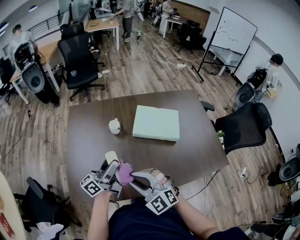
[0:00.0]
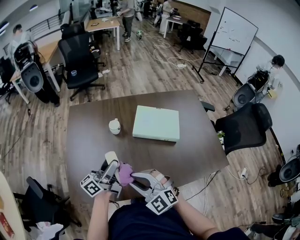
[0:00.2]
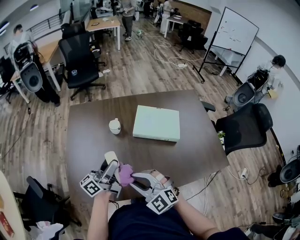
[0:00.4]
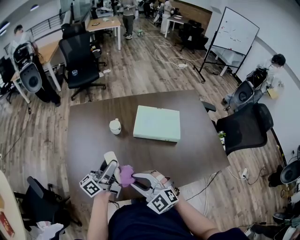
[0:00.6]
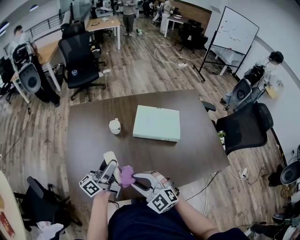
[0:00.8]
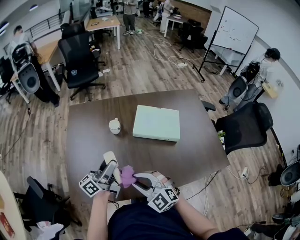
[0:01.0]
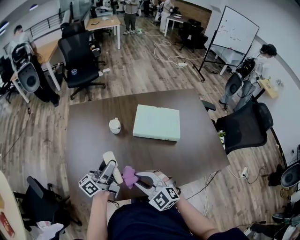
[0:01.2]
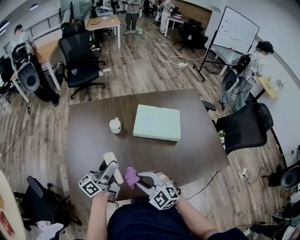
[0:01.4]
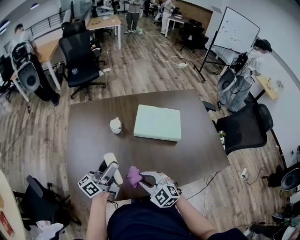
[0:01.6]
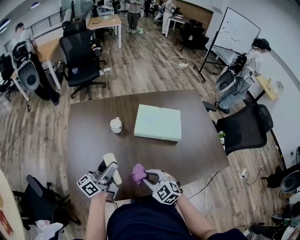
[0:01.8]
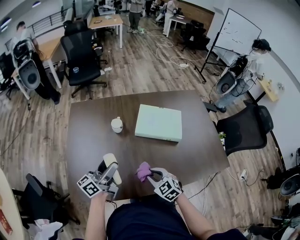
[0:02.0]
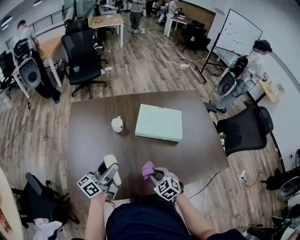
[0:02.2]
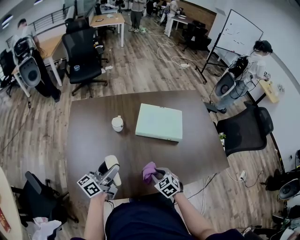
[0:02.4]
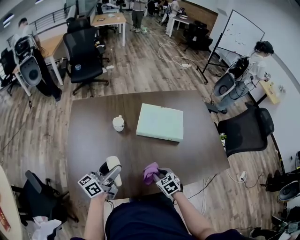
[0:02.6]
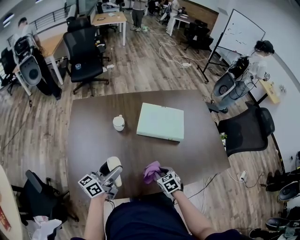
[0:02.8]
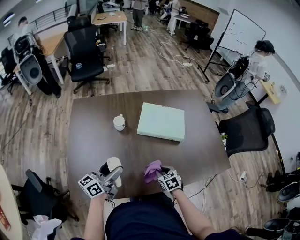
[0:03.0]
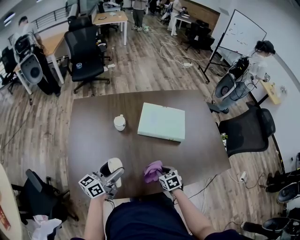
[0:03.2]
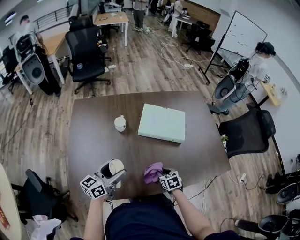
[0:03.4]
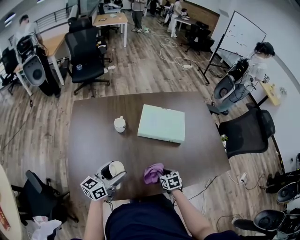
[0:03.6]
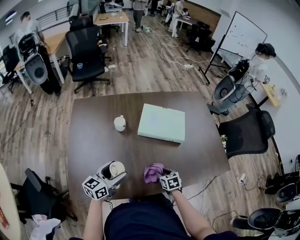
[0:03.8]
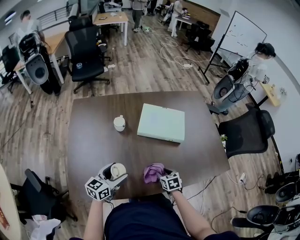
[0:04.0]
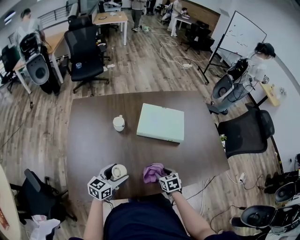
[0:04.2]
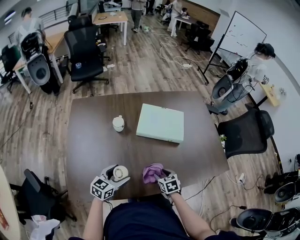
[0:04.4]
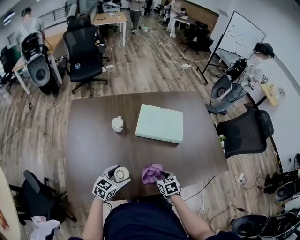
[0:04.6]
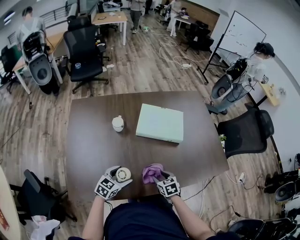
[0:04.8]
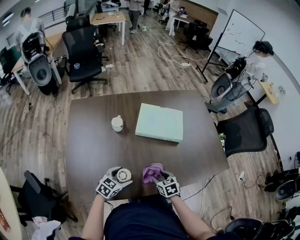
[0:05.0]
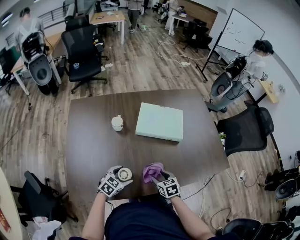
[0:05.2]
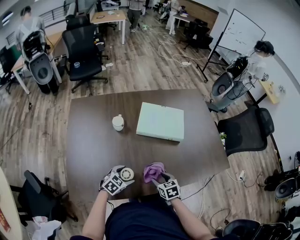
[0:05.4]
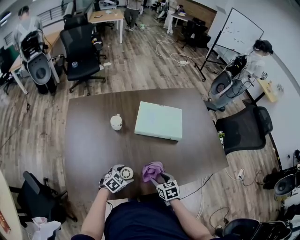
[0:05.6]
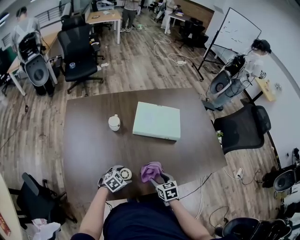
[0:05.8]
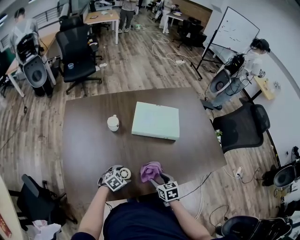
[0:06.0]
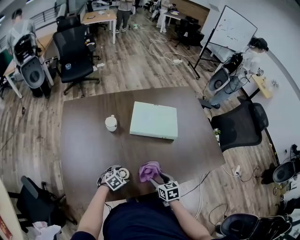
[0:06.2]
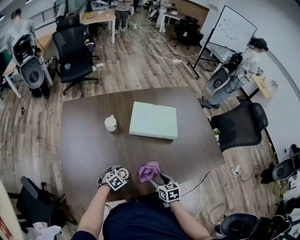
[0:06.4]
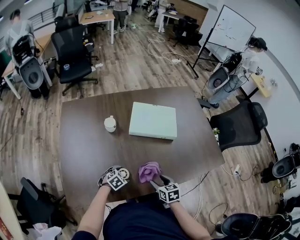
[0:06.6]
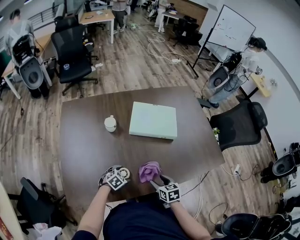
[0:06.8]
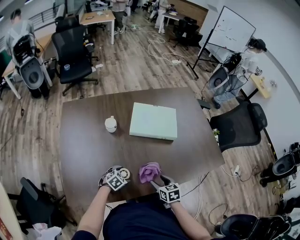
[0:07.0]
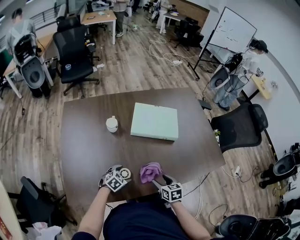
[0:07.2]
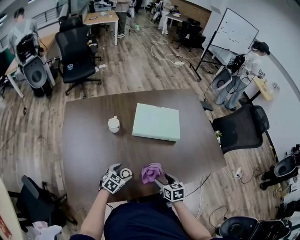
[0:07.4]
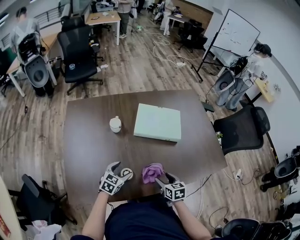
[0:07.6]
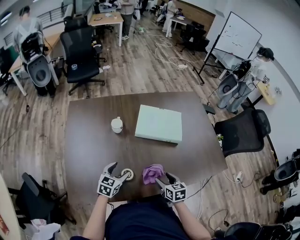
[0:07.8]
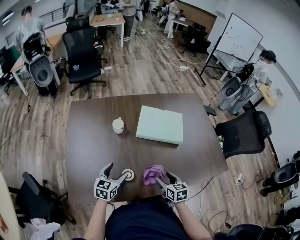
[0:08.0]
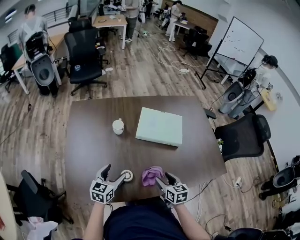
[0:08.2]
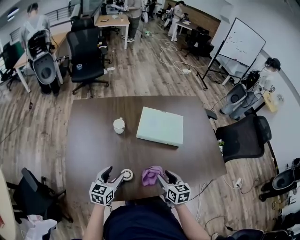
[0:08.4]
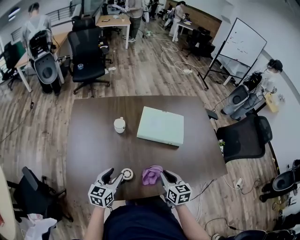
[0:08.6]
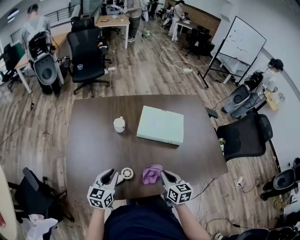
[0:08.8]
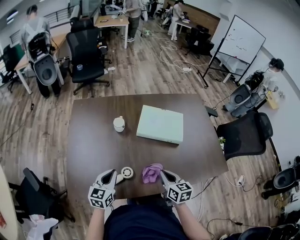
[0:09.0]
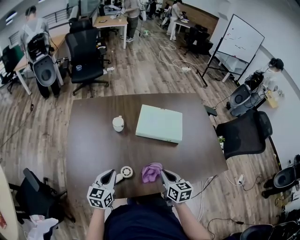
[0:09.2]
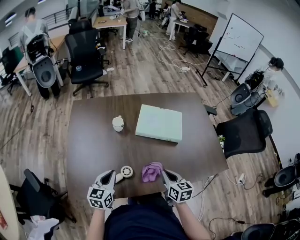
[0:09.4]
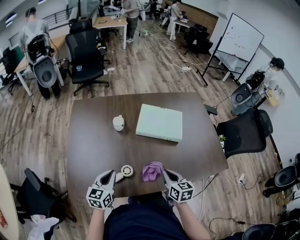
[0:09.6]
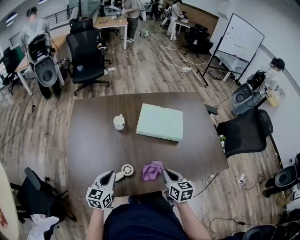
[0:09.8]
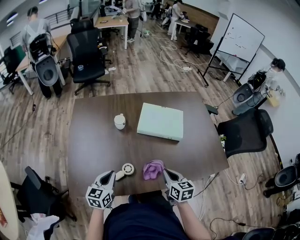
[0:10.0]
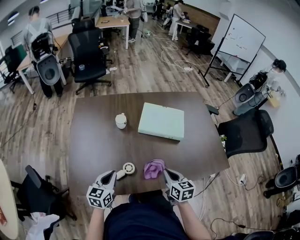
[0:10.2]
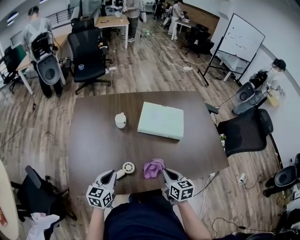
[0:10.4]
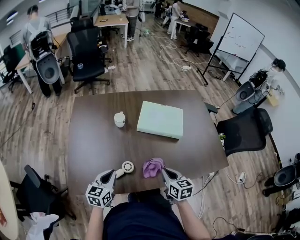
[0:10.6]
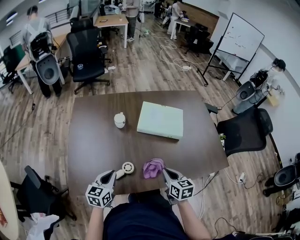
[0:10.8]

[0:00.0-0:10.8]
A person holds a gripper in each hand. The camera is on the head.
0:00.0 to 0:01.6: The right gripper heads downward, covering approximately 10 cm.
0:01.6 to 0:03.0: The right gripper moves downward and to the right, some 20 cm, and changes its angle by about 50 degrees; the left gripper moves some 5 cm.
0:03.0 to 0:04.6: The right gripper opens. The left gripper moves downward, roughly 10 cm, and tips its fingers downward by some 30 degrees.
0:04.6 to 0:06.2: The left gripper moves downward, approximately 15 cm, and tilts its fingers about 30 degrees downward.
0:06.2 to 0:07.8: The left gripper moves upward, about 15 cm, and turns by some 40 degrees.
0:07.8 to 0:09.2: The left gripper is displaced upward and backward by about 10 cm, and closes; the right gripper is displaced upward by approximately 10 cm, and closes up.
0:09.2 to 0:10.8: The grippers stay close to where they were, moving slightly.

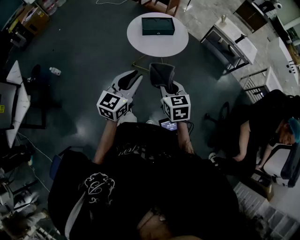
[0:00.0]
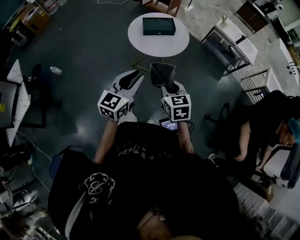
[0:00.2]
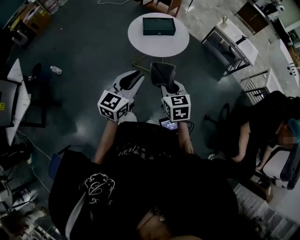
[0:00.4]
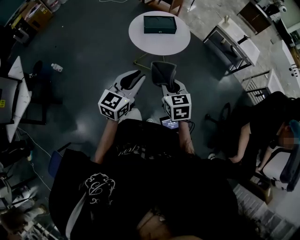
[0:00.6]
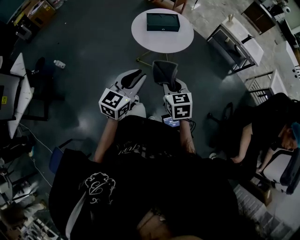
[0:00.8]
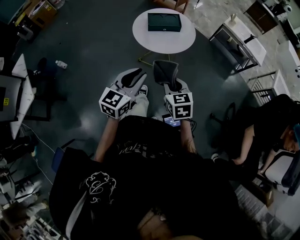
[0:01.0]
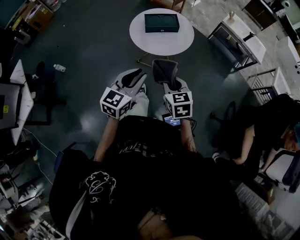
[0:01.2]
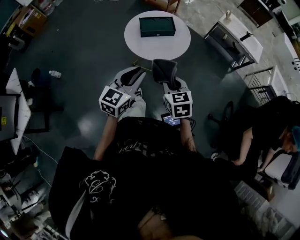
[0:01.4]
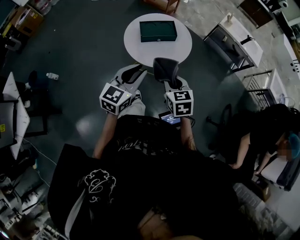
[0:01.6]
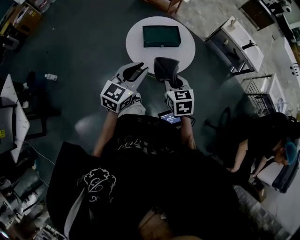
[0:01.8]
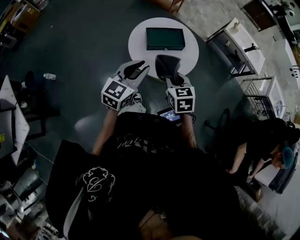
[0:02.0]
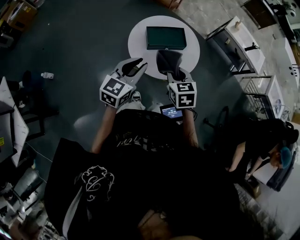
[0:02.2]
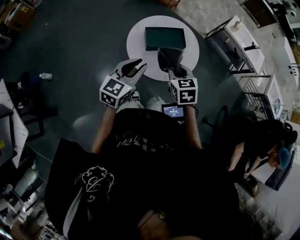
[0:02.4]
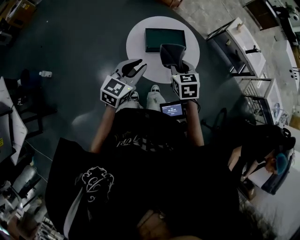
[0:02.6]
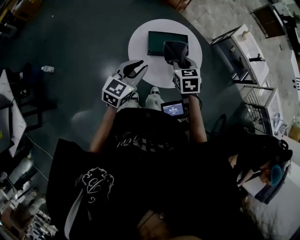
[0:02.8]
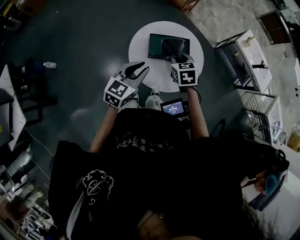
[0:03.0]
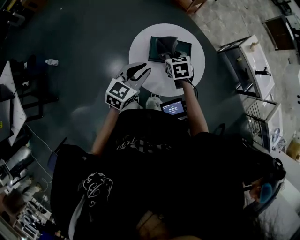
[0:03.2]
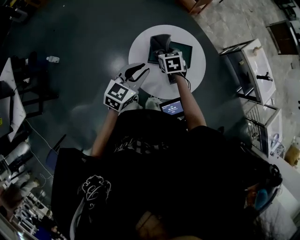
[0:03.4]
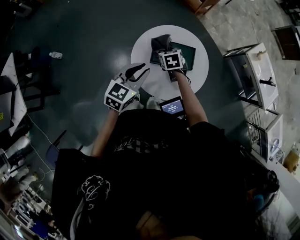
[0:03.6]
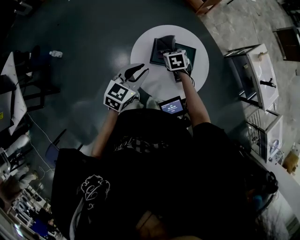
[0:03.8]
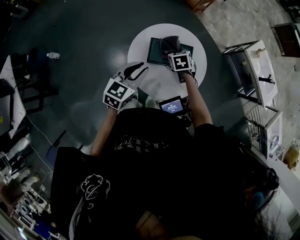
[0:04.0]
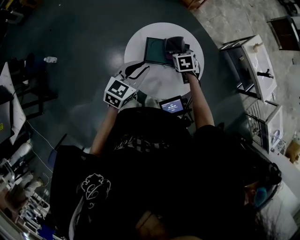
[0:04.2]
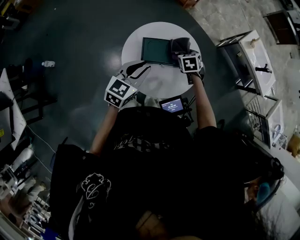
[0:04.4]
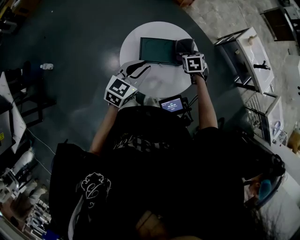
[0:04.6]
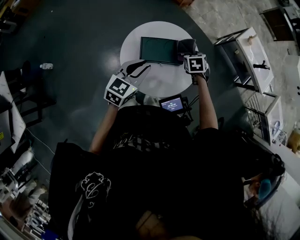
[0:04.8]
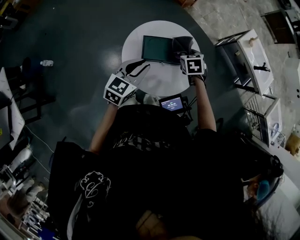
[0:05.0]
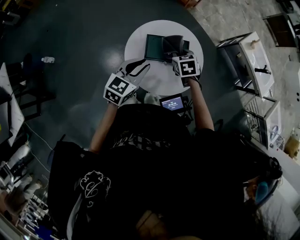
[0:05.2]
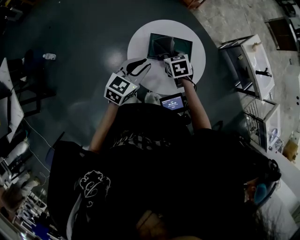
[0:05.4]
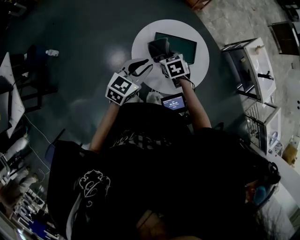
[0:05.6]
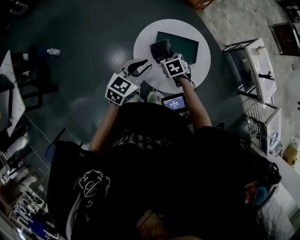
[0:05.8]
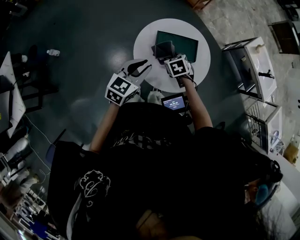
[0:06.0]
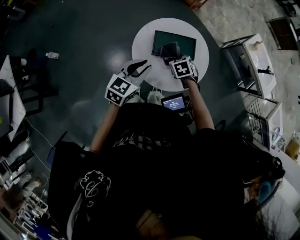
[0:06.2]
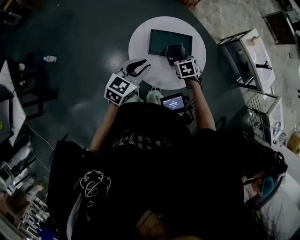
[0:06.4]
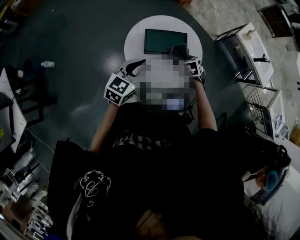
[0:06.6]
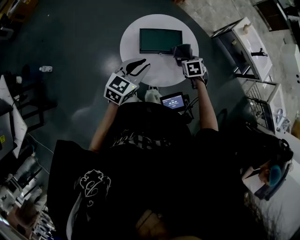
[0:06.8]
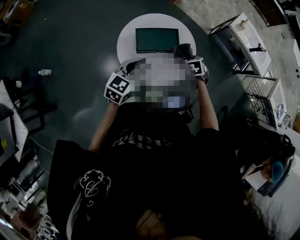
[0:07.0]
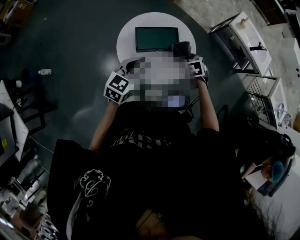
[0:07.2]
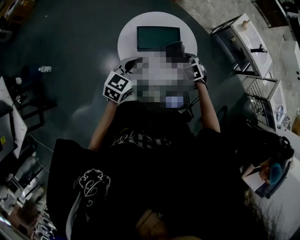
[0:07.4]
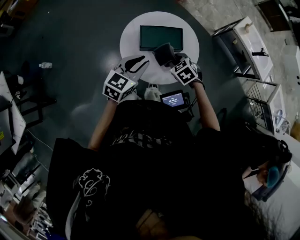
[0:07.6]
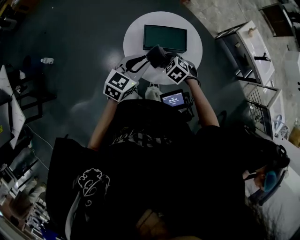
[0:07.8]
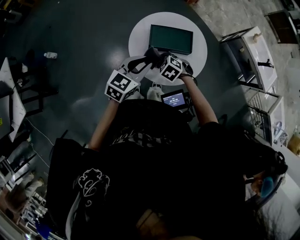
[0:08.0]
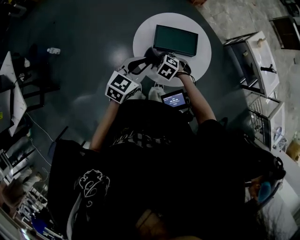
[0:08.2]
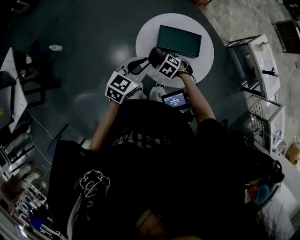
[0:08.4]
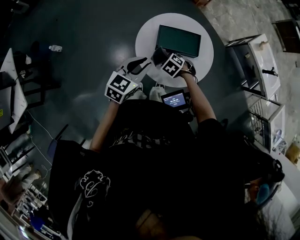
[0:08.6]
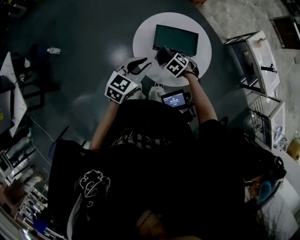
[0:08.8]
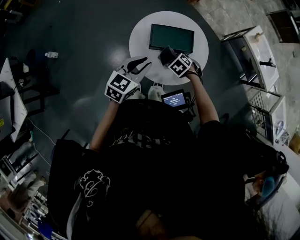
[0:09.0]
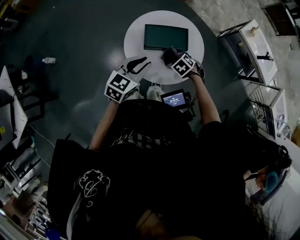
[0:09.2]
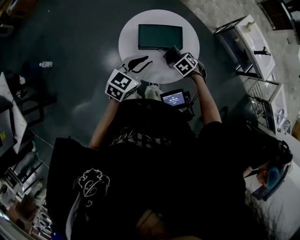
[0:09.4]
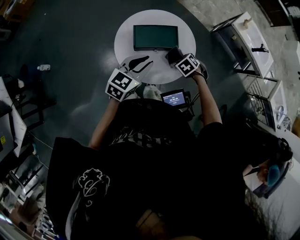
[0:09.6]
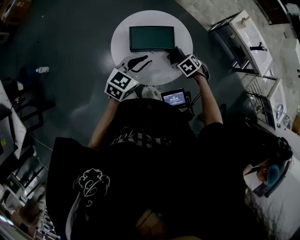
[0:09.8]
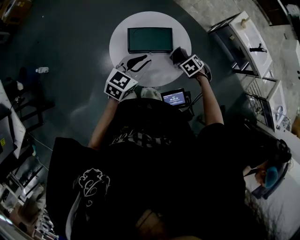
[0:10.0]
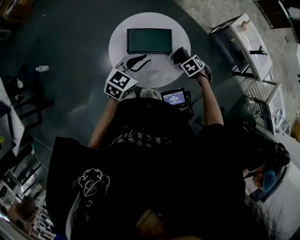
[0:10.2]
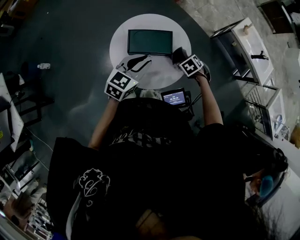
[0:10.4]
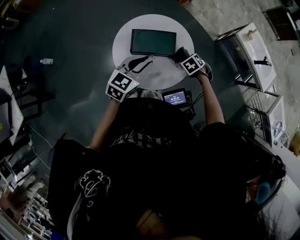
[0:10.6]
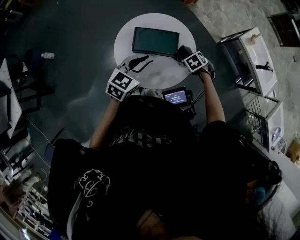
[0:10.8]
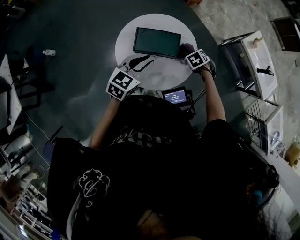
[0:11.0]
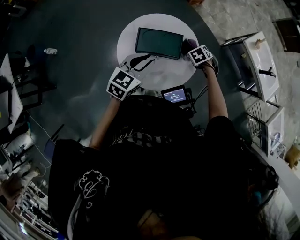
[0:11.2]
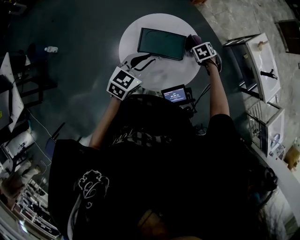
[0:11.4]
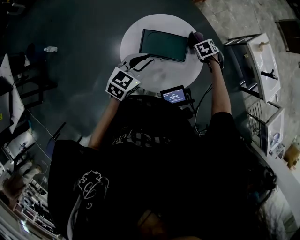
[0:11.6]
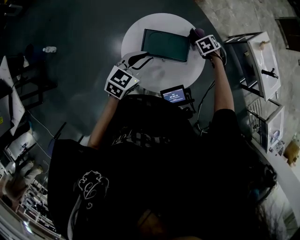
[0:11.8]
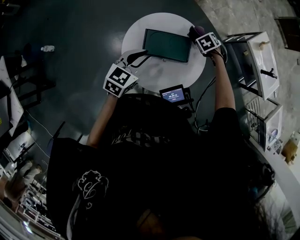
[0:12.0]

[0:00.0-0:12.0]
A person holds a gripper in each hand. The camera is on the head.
0:00.0 to 0:01.6: Both grippers travel together forward, roughly 15 cm.
0:01.6 to 0:03.0: The right gripper shifts about 30 cm forward; the left gripper heads forward, covering some 20 cm.
0:03.0 to 0:04.4: The left gripper moves forward, approximately 5 cm; the right gripper is displaced forward, downward and to the right by some 15 cm.
0:04.4 to 0:06.0: The right gripper shifts approximately 15 cm backward and to the left. Meanwhile the left gripper shifts about 5 cm backward.
0:06.0 to 0:07.6: The left gripper shifts by some 5 cm. The right gripper heads to the right, covering about 10 cm.
0:07.6 to 0:09.0: The right gripper shifts some 10 cm downward, and travels to the left and back again, some 10 cm each way.
0:09.0 to 0:10.4: The left gripper ends up roughly 10 cm from where it was. The right gripper ends up some 20 cm from where it was.
0:10.4 to 0:12.0: The left gripper changes place by some 10 cm; the right gripper shifts by some 20 cm.

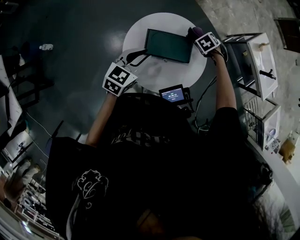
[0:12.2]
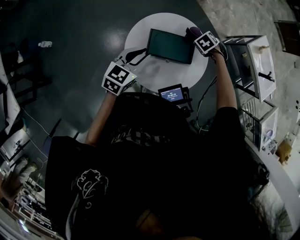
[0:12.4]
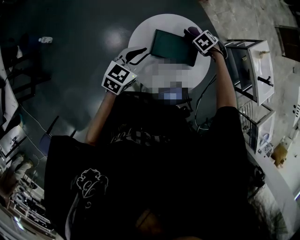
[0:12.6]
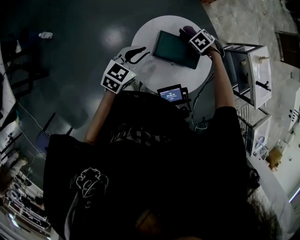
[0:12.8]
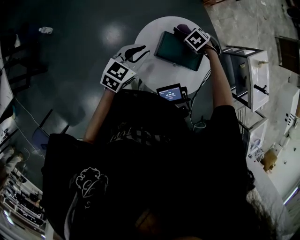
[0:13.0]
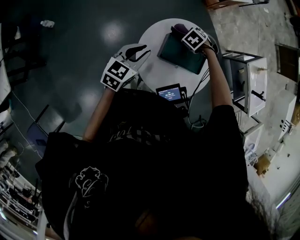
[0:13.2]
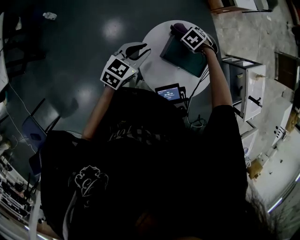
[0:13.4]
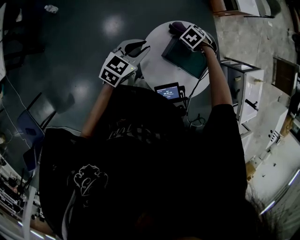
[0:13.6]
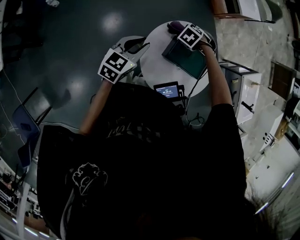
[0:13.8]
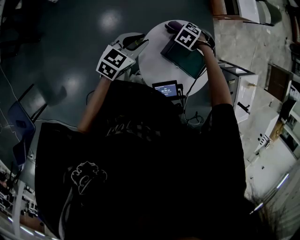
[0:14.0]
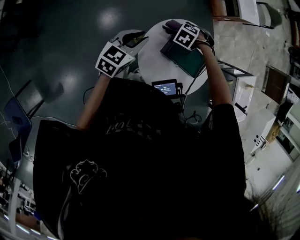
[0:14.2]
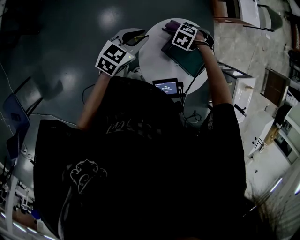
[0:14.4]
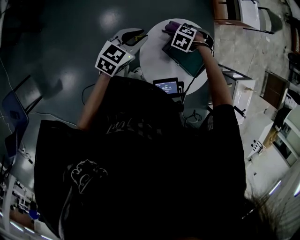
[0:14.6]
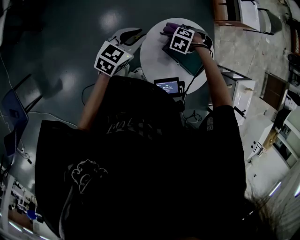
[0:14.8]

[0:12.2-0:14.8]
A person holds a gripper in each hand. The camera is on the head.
0:12.2 to 0:13.4: The right gripper moves approximately 25 cm, and turns by about 30 degrees. The left gripper moves some 15 cm.
0:13.4 to 0:14.8: The left gripper shifts by about 5 cm, while the right gripper changes place by about 10 cm, and rotates roughly 40 degrees.
